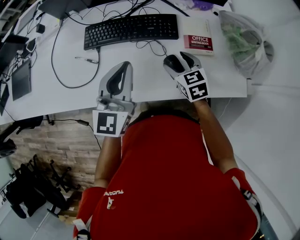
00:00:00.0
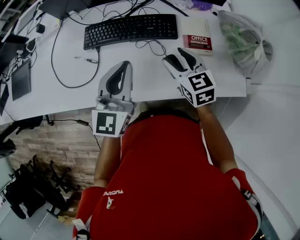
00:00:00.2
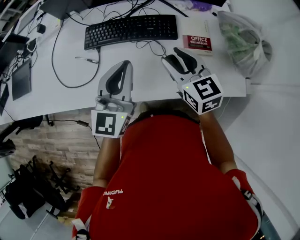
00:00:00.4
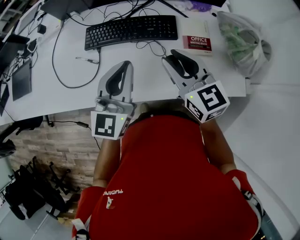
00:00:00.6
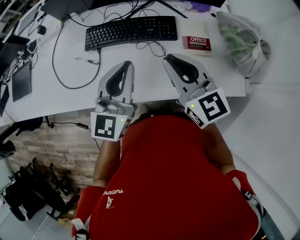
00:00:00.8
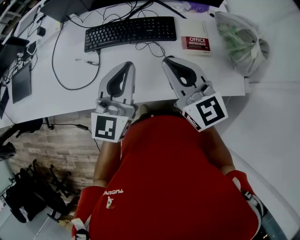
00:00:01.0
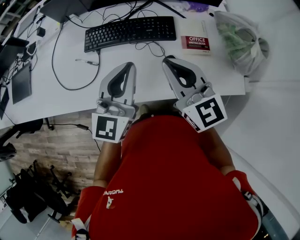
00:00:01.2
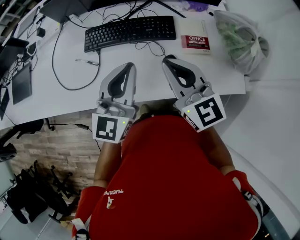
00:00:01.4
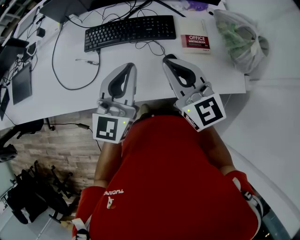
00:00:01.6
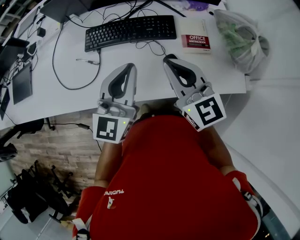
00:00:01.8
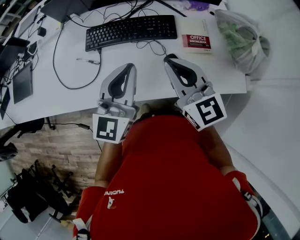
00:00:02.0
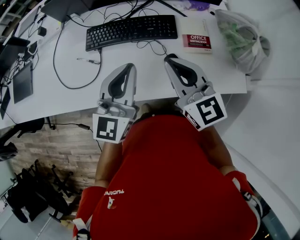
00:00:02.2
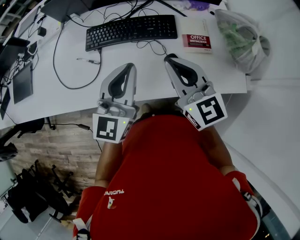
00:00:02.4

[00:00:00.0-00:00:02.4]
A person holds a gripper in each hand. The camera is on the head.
00:00:00.0 to 00:00:01.2: The right gripper heads upward, covering some 20 cm, tips its fingers upward by some 30 degrees, and closes.
00:00:01.2 to 00:00:02.4: Both grippers stay about where they are.

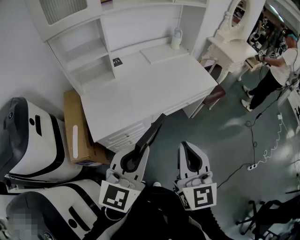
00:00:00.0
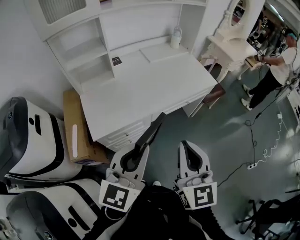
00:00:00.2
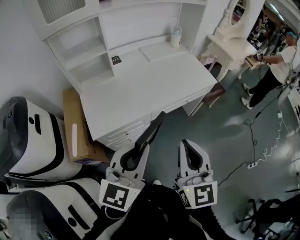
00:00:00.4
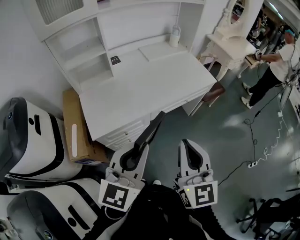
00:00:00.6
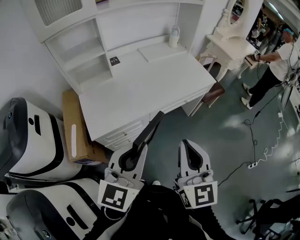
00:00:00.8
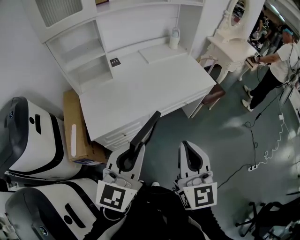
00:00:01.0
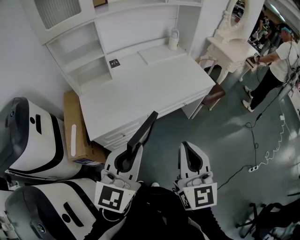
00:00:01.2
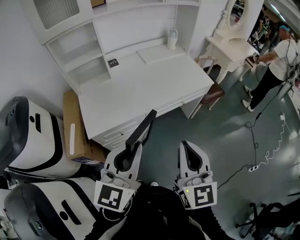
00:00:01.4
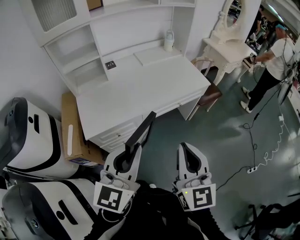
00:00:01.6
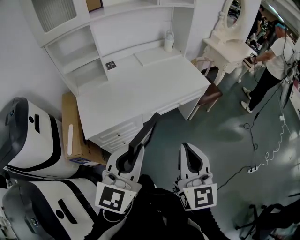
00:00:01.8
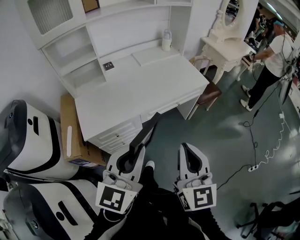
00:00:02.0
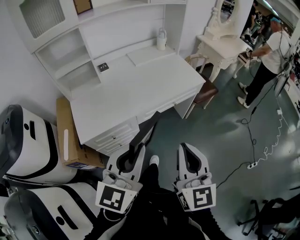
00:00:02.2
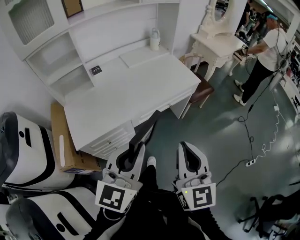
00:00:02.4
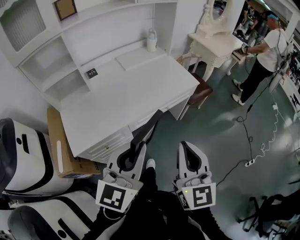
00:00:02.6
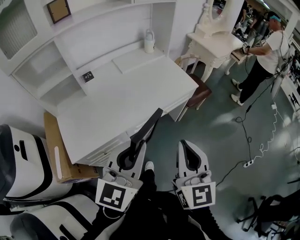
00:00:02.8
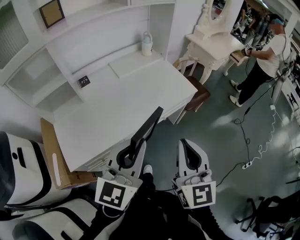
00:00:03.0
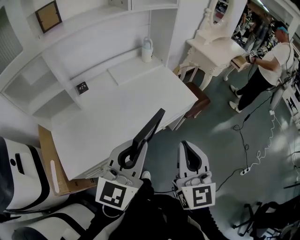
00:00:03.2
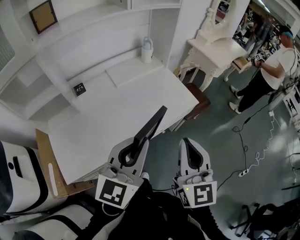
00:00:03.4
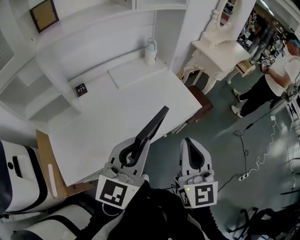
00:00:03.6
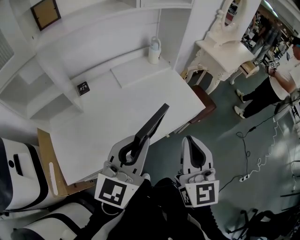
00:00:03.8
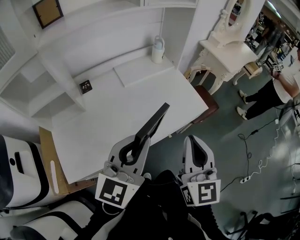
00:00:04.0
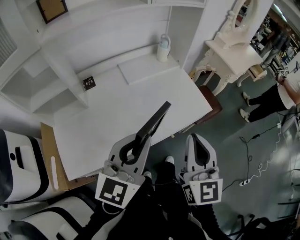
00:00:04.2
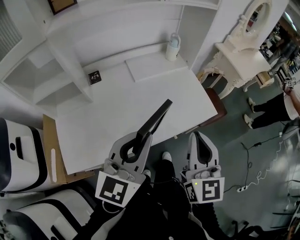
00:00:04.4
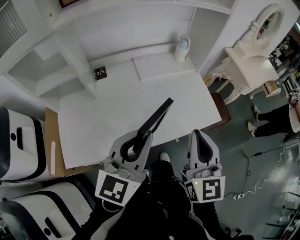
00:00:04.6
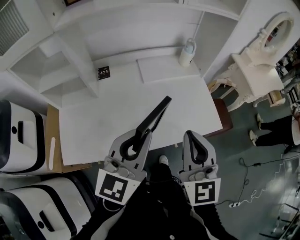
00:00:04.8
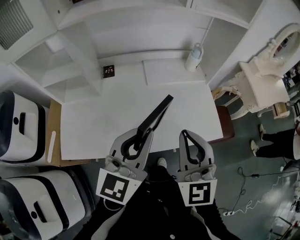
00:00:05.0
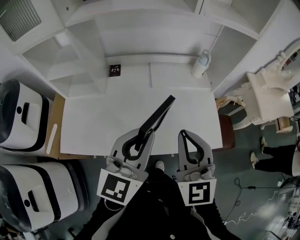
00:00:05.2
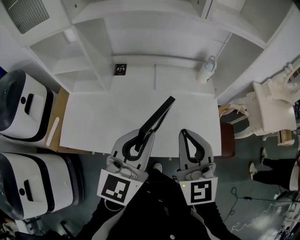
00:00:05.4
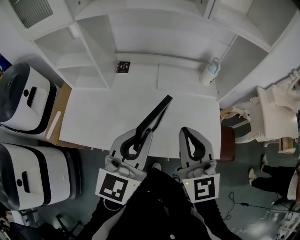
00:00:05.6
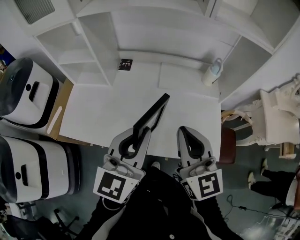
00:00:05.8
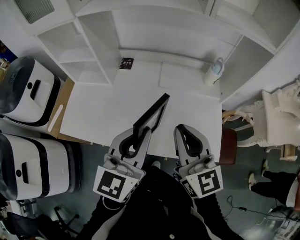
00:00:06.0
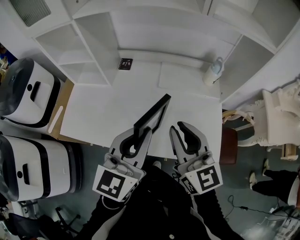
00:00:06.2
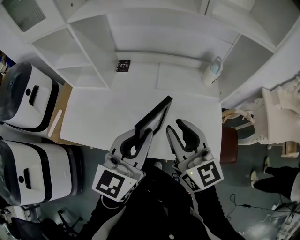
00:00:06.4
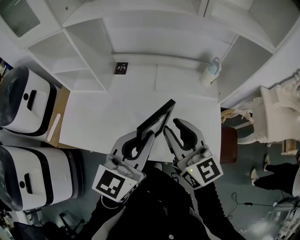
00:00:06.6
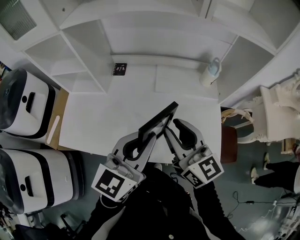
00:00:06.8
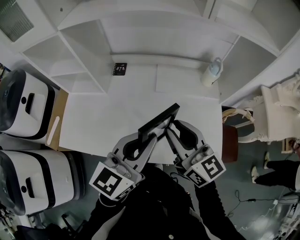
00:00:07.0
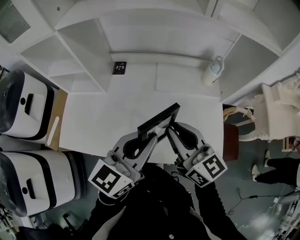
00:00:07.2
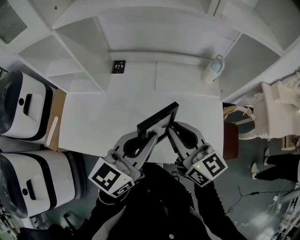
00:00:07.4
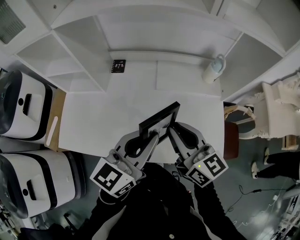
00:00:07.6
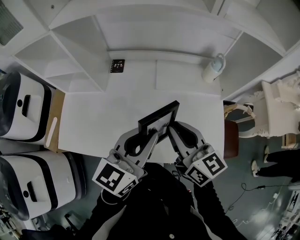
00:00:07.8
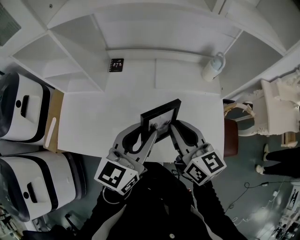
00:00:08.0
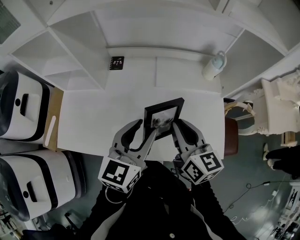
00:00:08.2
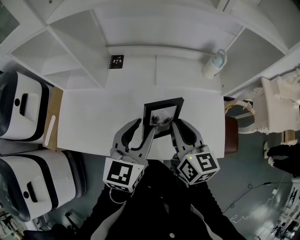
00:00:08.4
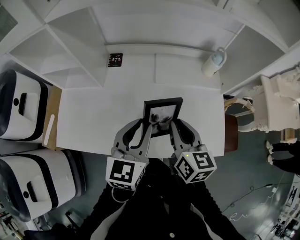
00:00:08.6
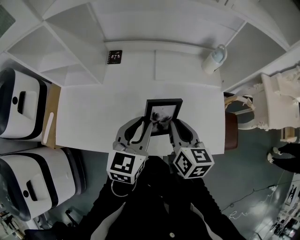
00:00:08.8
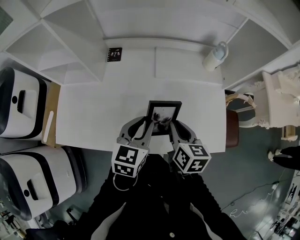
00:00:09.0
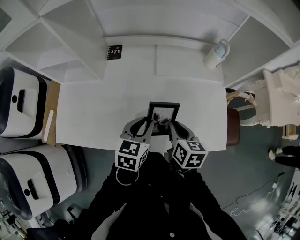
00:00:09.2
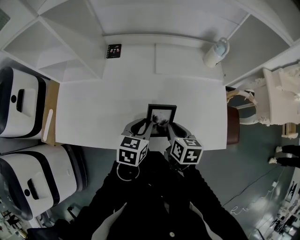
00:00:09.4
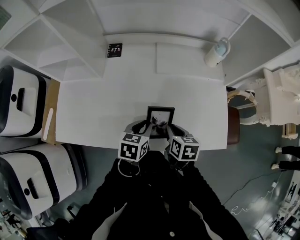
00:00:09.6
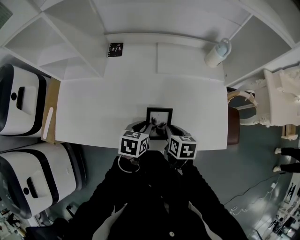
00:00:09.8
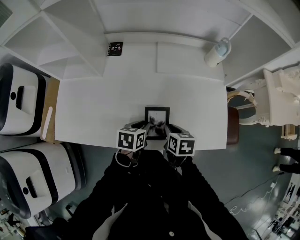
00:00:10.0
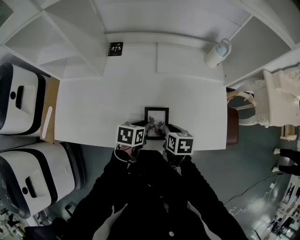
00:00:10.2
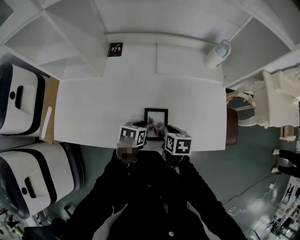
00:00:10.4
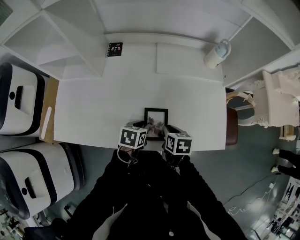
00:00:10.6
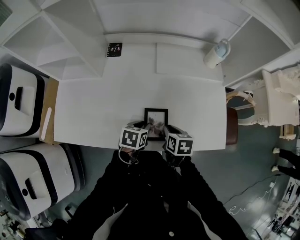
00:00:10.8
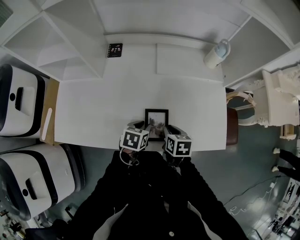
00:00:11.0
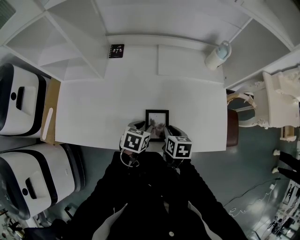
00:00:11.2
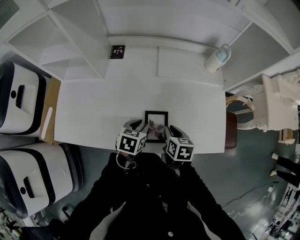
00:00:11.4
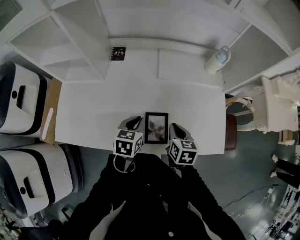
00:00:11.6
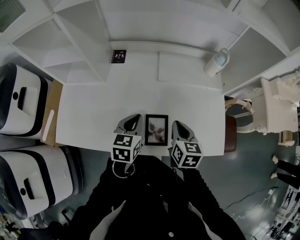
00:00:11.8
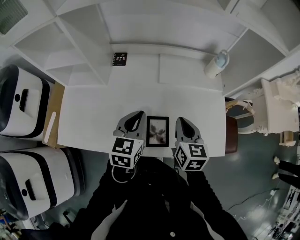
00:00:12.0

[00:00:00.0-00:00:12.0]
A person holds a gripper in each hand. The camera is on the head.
00:00:00.0 to 00:00:01.6: Both grippers travel together to the right, roughly 5 cm.
00:00:01.6 to 00:00:03.0: Both grippers travel together forward, about 20 cm.
00:00:03.0 to 00:00:04.4: The two grippers go some 15 cm forward.
00:00:04.4 to 00:00:06.0: The right gripper shifts by some 15 cm, and changes its angle by roughly 50 degrees. Meanwhile the left gripper ends up about 10 cm from where it was, and turns by some 30 degrees.
00:00:06.0 to 00:00:07.6: The right gripper shifts about 10 cm forward and downward. Meanwhile the left gripper is displaced forward by approximately 5 cm, and swivels some 20 degrees.
00:00:07.6 to 00:00:09.0: The two grippers go roughly 15 cm downward. The right gripper changes its angle by roughly 30 degrees; the left gripper swivels some 30 degrees.
00:00:09.0 to 00:00:10.4: The two grippers go roughly 15 cm downward. The right gripper changes its angle by some 20 degrees; the left gripper turns by about 40 degrees.
00:00:10.4 to 00:00:12.0: Both grippers travel together upward, some 15 cm. The left gripper rotates approximately 40 degrees, and closes up; the right gripper changes its angle by some 30 degrees.

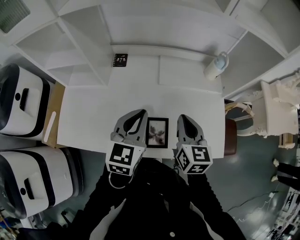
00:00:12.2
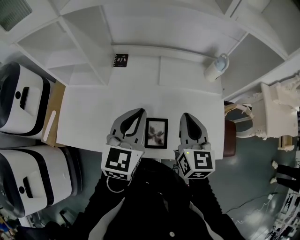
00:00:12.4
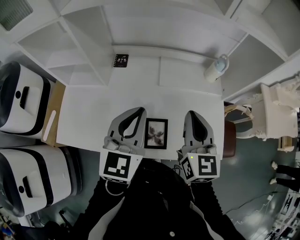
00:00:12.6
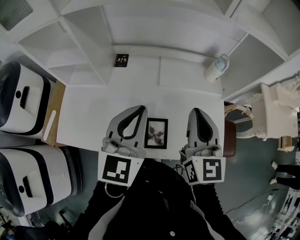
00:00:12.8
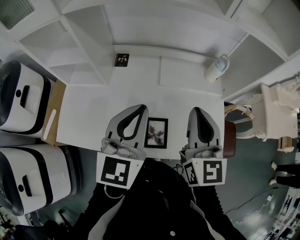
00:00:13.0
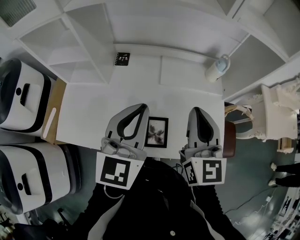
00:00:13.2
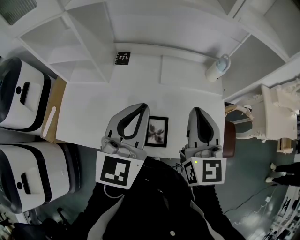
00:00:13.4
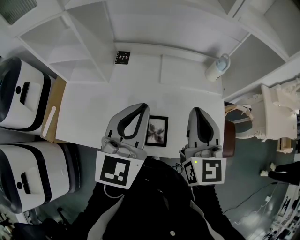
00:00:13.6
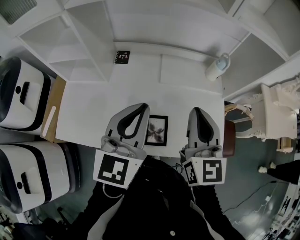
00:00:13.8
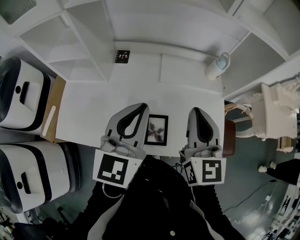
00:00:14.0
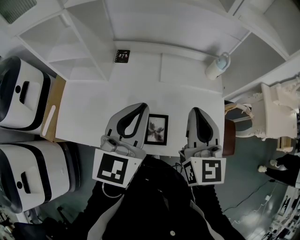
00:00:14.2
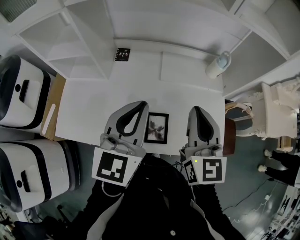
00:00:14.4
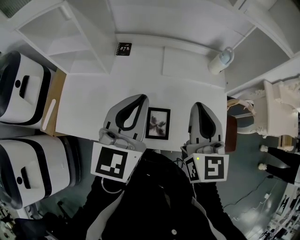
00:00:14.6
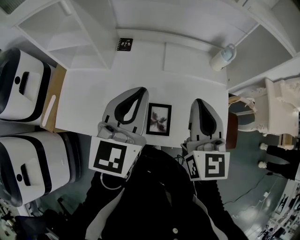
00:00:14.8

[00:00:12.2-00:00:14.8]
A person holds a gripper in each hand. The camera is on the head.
00:00:12.2 to 00:00:13.4: The grippers both shift upward by approximately 10 cm.
00:00:13.4 to 00:00:14.8: The two grippers keep their place.

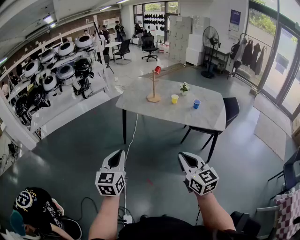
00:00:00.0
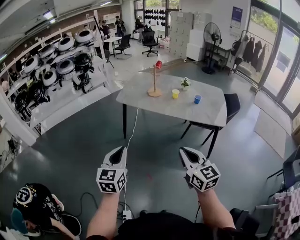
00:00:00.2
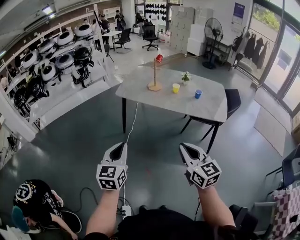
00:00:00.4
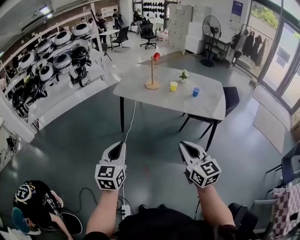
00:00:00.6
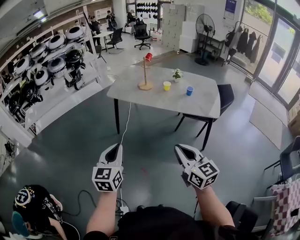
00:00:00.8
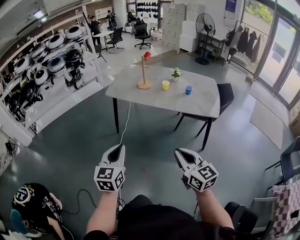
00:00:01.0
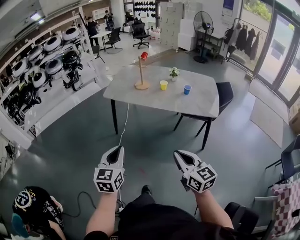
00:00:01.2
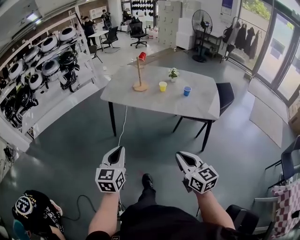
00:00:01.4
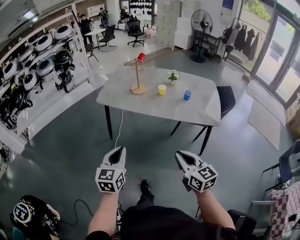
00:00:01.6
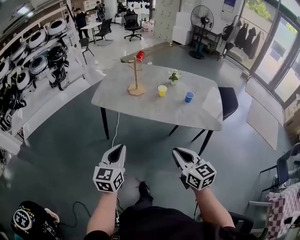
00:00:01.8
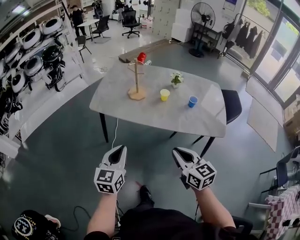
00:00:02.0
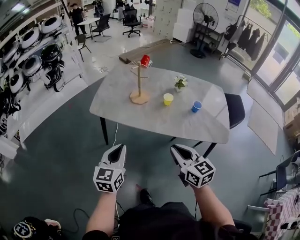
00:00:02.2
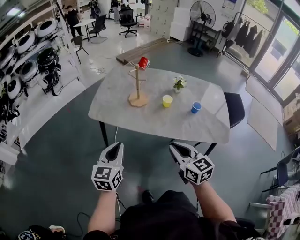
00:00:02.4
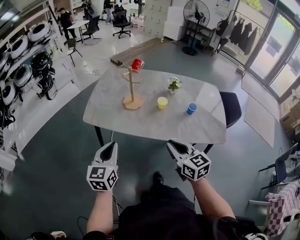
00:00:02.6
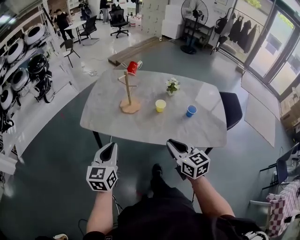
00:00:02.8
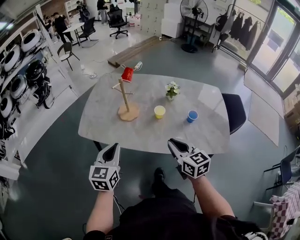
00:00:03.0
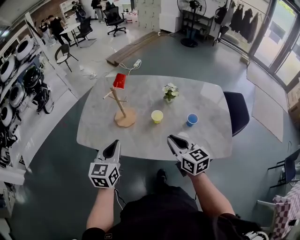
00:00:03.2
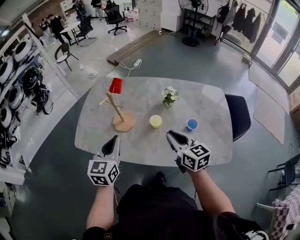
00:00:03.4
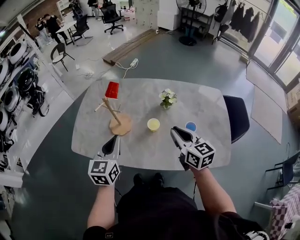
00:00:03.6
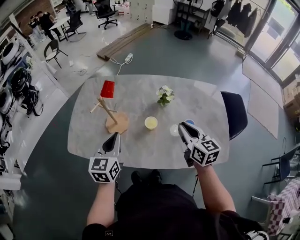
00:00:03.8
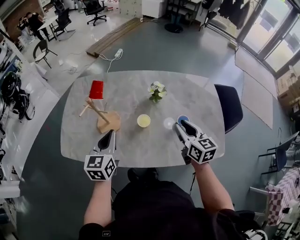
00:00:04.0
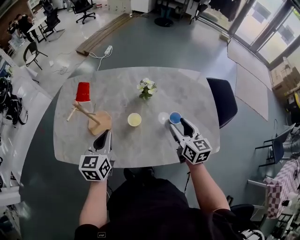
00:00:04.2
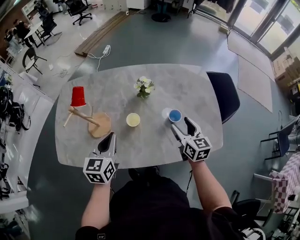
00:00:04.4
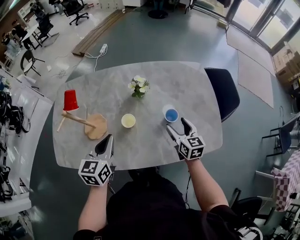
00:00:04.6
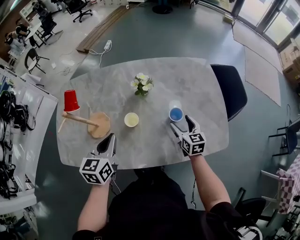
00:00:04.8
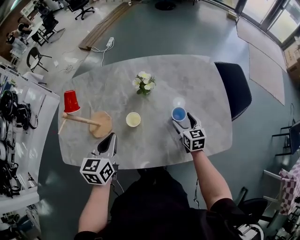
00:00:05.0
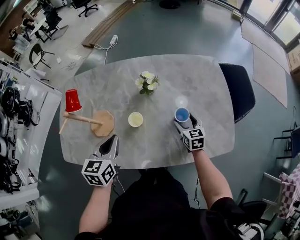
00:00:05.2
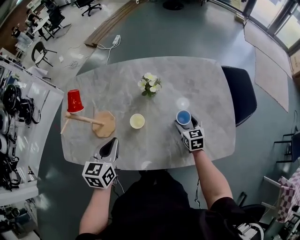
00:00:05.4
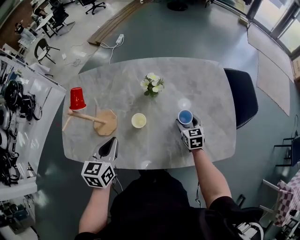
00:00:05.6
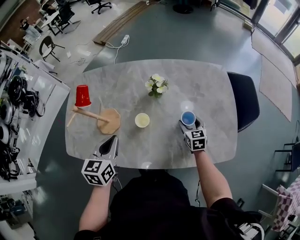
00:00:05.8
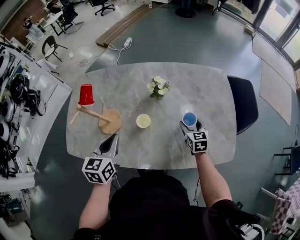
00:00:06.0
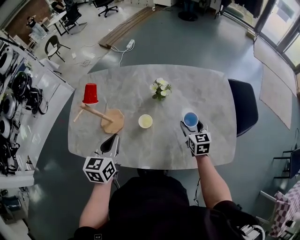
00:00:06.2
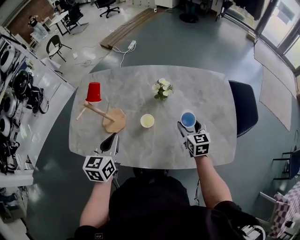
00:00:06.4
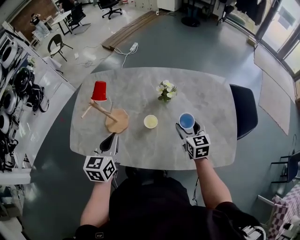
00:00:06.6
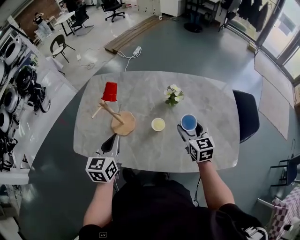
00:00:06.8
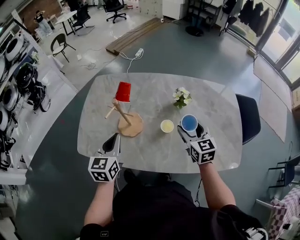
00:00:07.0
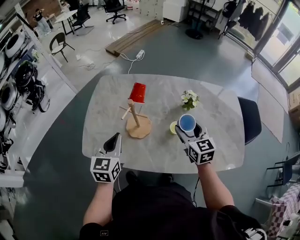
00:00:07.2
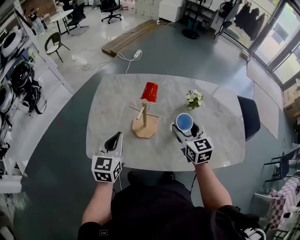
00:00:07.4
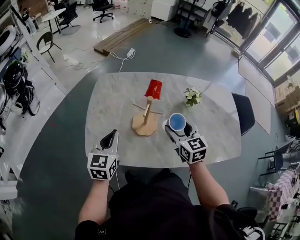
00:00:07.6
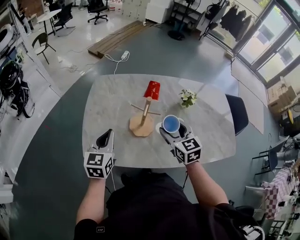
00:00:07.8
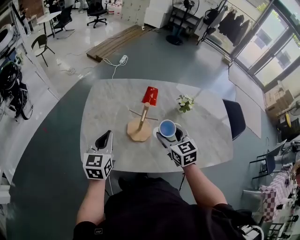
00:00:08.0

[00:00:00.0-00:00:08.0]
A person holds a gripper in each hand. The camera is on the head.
00:00:00.0 to 00:00:01.6: Both grippers travel together forward, to the right and downward, some 15 cm.
00:00:01.6 to 00:00:03.2: Both grippers are carried forward, approximately 40 cm.
00:00:03.2 to 00:00:04.8: The left gripper is displaced forward, to the right and downward by about 20 cm. The right gripper travels to the right, downward and forward by approximately 30 cm, rotates some 30 degrees, and opens.
00:00:04.8 to 00:00:06.4: The left gripper shifts by roughly 5 cm. The right gripper ends up some 5 cm from where it was.
00:00:06.4 to 00:00:08.0: The two grippers go roughly 30 cm to the left.
